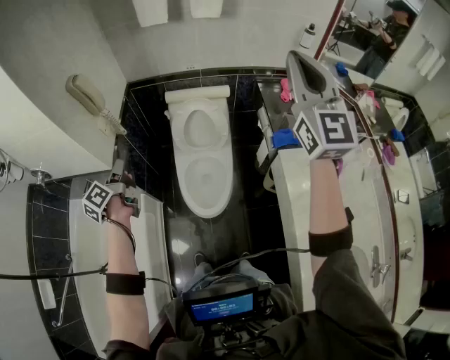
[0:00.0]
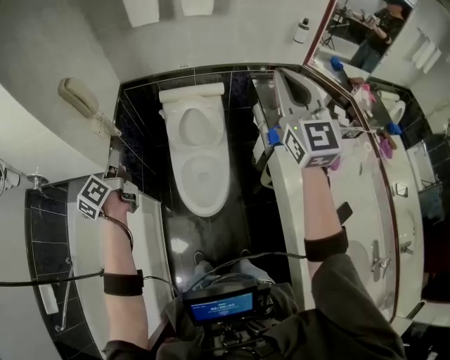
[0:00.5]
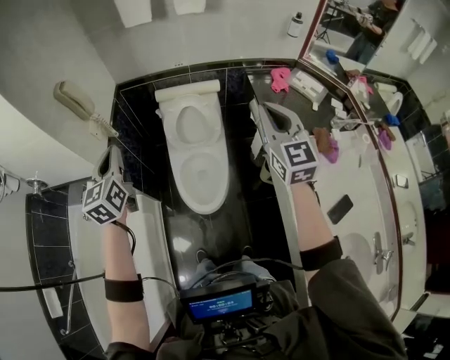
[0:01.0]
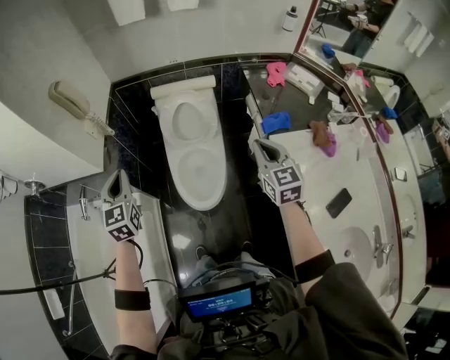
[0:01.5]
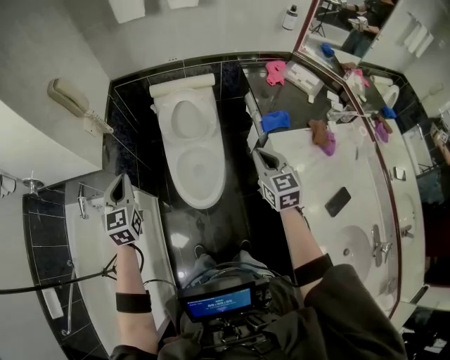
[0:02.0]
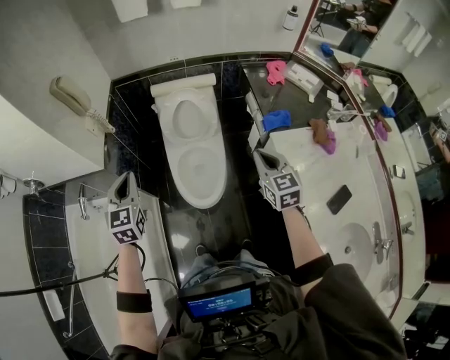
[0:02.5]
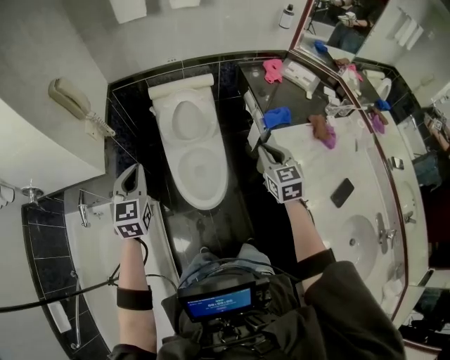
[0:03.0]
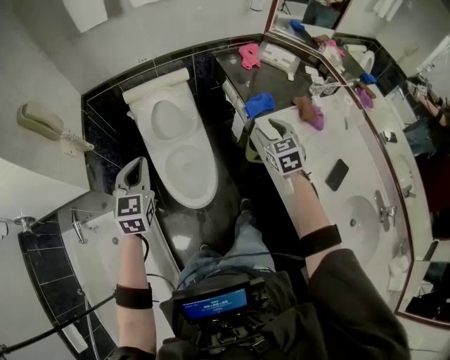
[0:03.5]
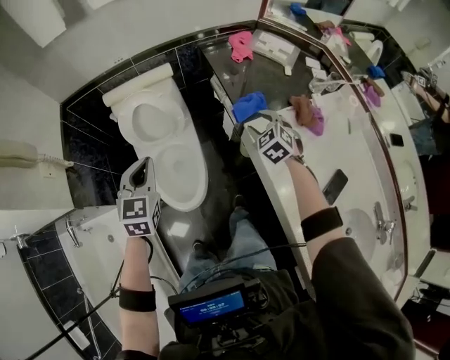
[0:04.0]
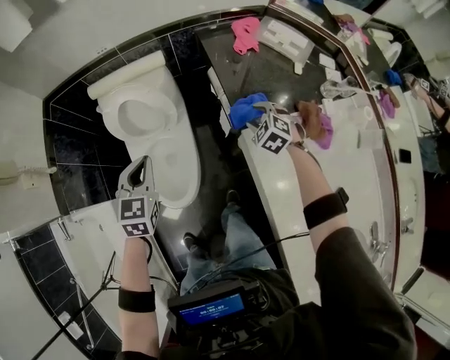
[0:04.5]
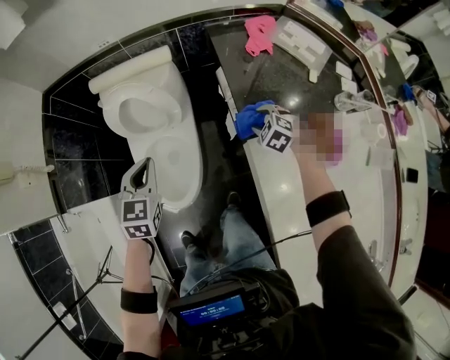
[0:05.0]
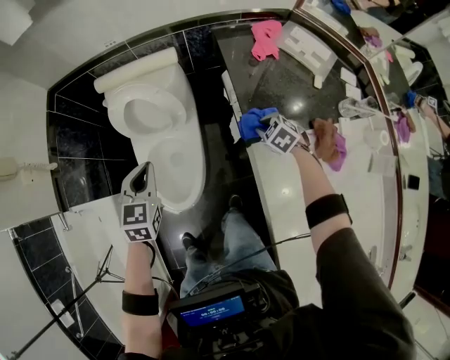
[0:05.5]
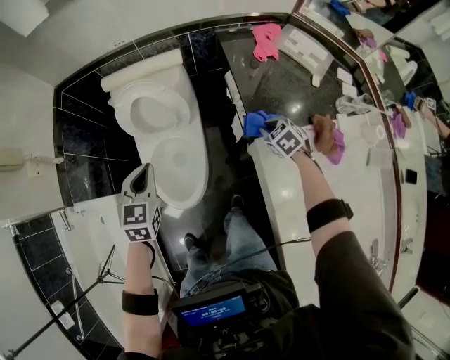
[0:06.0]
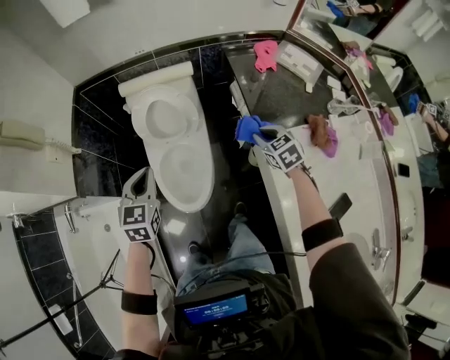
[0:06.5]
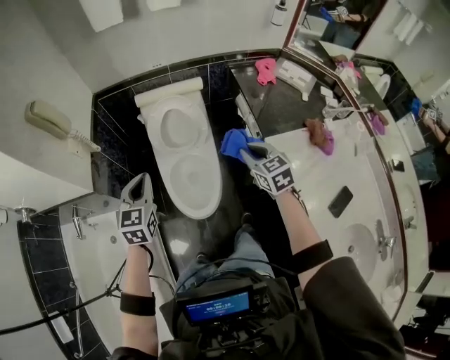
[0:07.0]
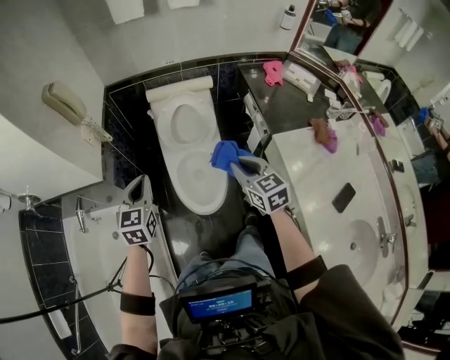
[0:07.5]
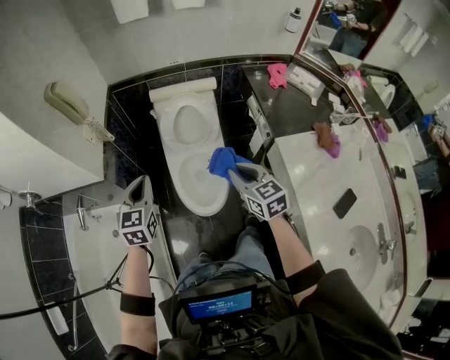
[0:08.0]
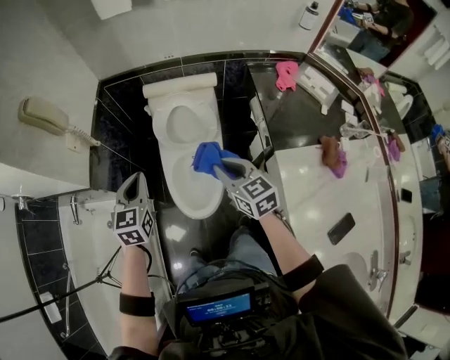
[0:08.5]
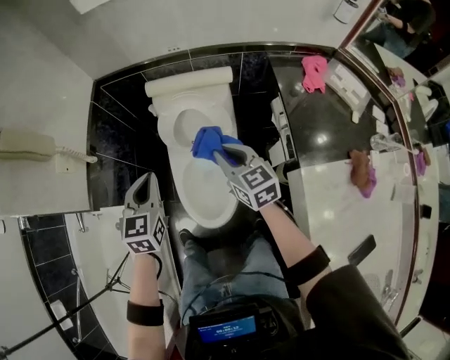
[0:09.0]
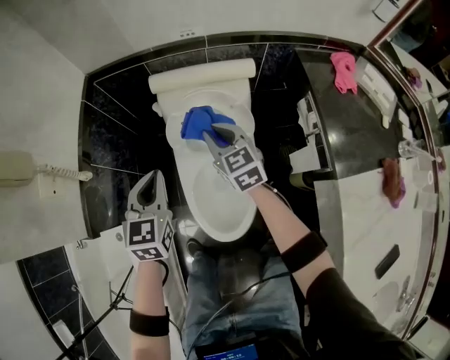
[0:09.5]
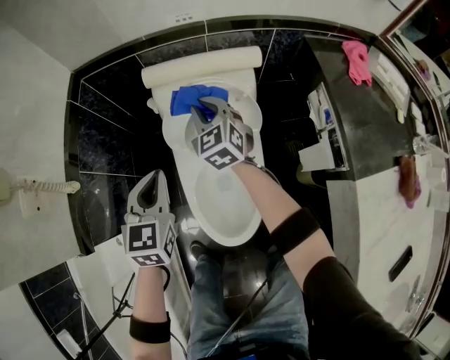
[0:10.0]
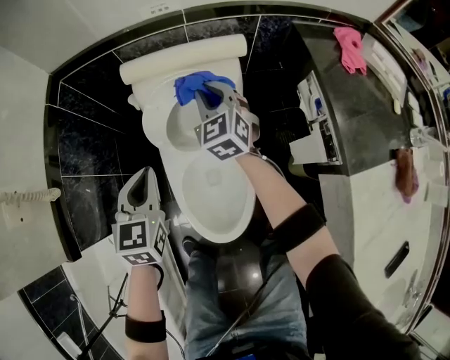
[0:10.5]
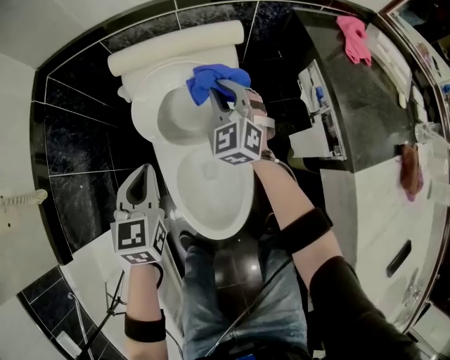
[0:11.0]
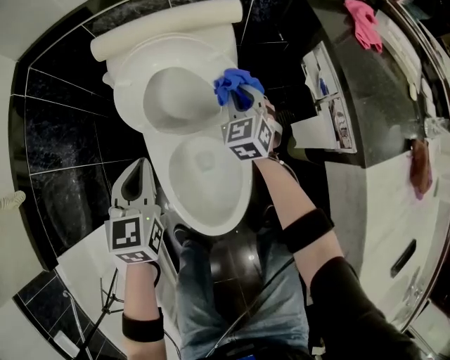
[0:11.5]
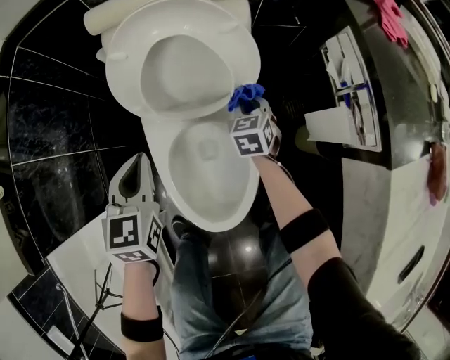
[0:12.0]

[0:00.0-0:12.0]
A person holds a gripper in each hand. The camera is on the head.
0:00.0 to 0:02.0: The left gripper moves backward and to the right, about 10 cm, reaches some 10 cm upward, then returns, and rotates around the line of its fingers by approximately 70 degrees, clockwise from behind; the right gripper goes approximately 35 cm downward, and angles its fingers downward, by about 40 degrees.
0:02.0 to 0:04.0: The left gripper is displaced to the right and forward by roughly 25 cm, and turns by some 30 degrees; the right gripper shifts about 25 cm to the right, forward and downward, changes its angle by about 30 degrees, and opens up.
0:04.0 to 0:06.0: The right gripper travels downward and forward by some 15 cm, changes its angle by approximately 20 degrees, and closes its fingers. Meanwhile the left gripper heads downward and forward, covering about 10 cm.
0:06.0 to 0:08.0: The left gripper shifts some 30 cm to the left, backward and upward, while the right gripper is displaced to the left, upward and backward by approximately 50 cm, and points its fingers approximately 40 degrees further upward.
0:08.0 to 0:10.0: The left gripper travels forward and downward by some 35 cm, while the right gripper goes roughly 50 cm forward and downward, and turns by approximately 20 degrees.
0:10.0 to 0:12.0: The left gripper is displaced downward by roughly 15 cm. Meanwhile the right gripper is displaced downward and to the right by roughly 35 cm, and rotates about 30 degrees.

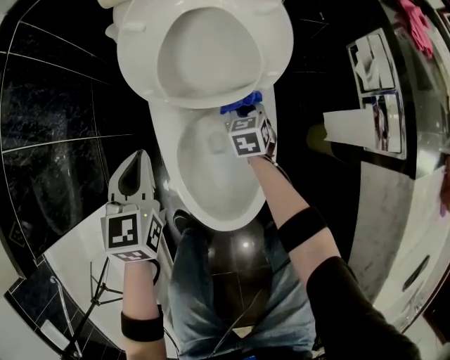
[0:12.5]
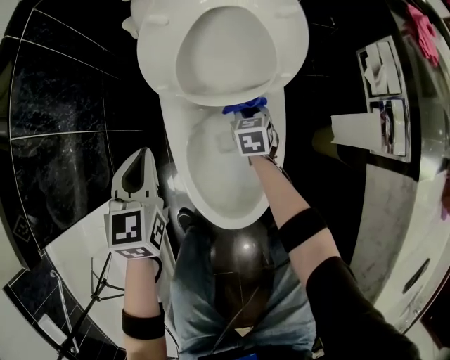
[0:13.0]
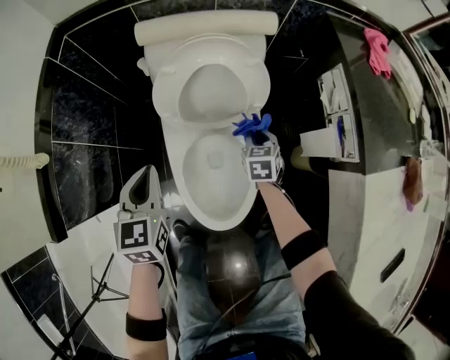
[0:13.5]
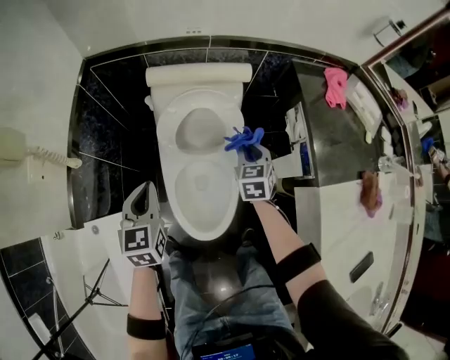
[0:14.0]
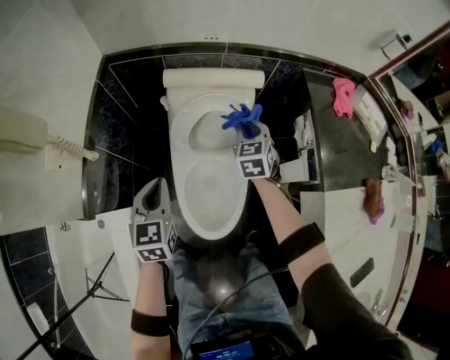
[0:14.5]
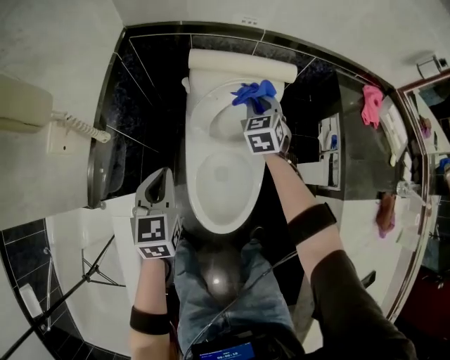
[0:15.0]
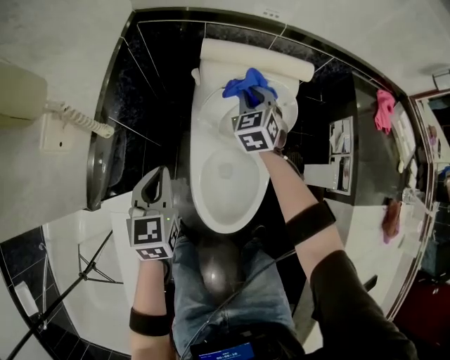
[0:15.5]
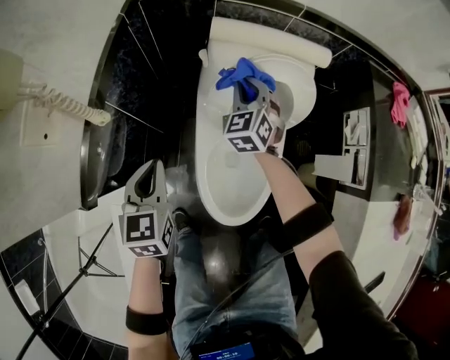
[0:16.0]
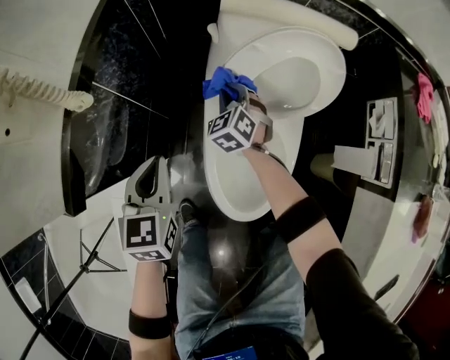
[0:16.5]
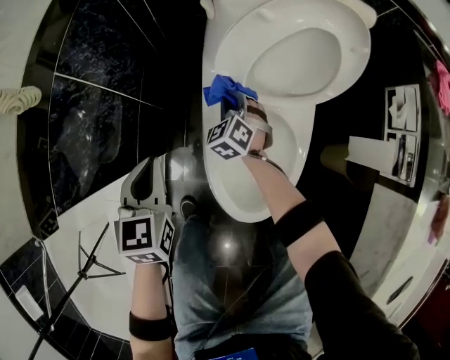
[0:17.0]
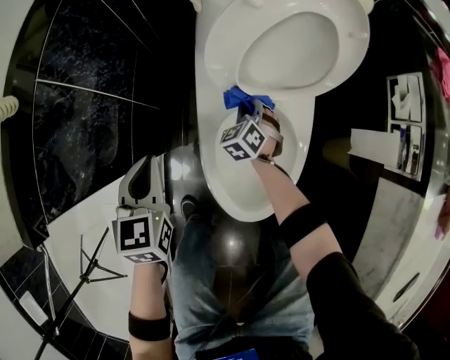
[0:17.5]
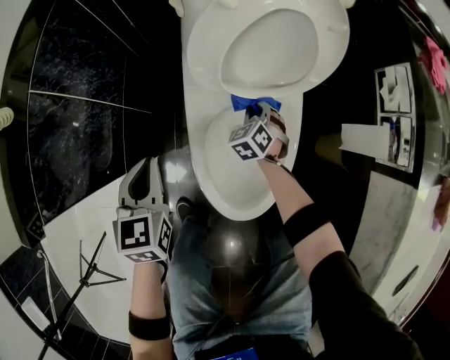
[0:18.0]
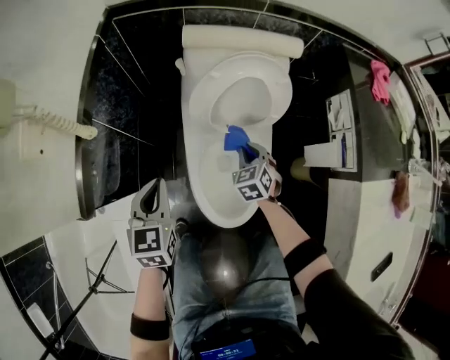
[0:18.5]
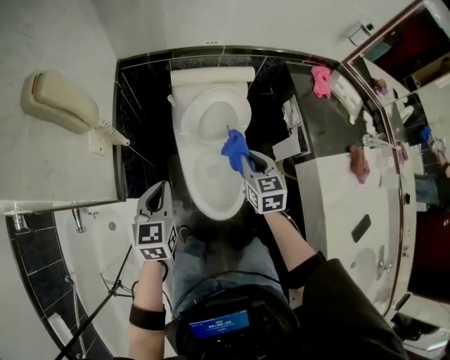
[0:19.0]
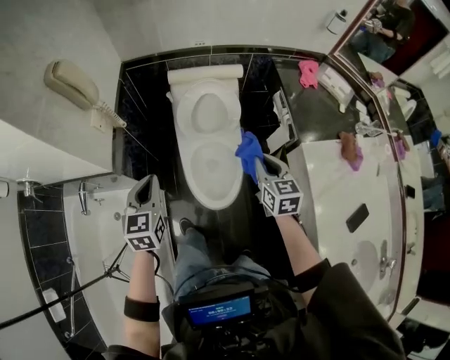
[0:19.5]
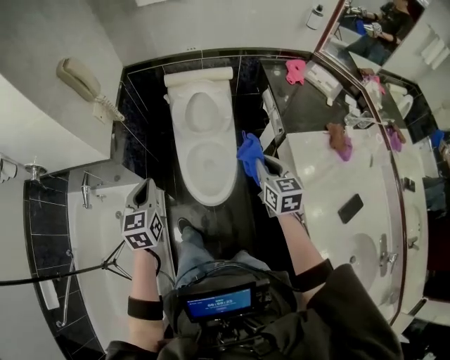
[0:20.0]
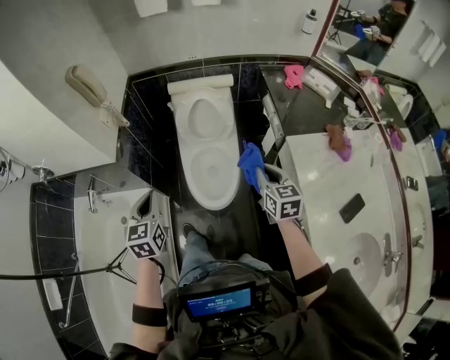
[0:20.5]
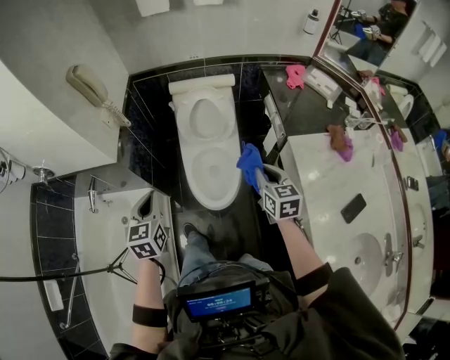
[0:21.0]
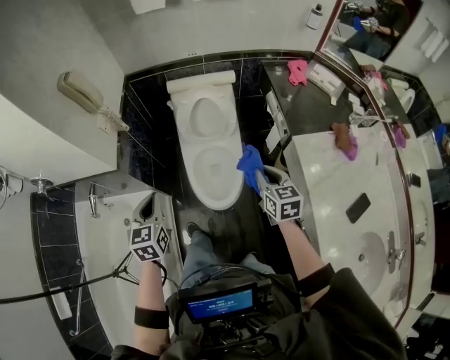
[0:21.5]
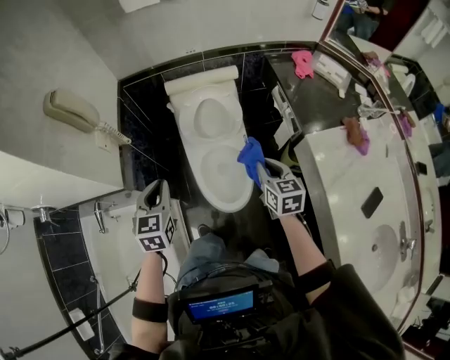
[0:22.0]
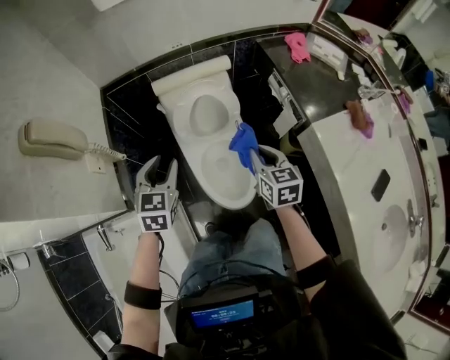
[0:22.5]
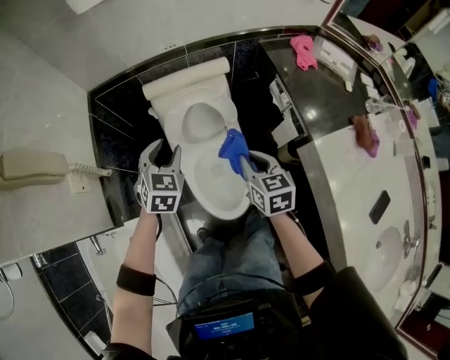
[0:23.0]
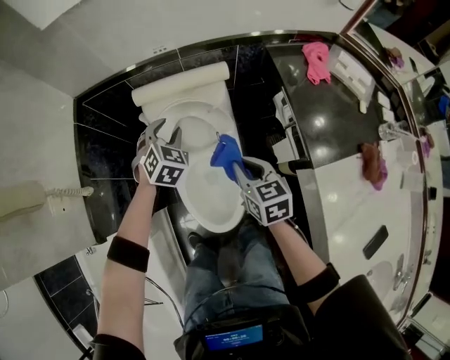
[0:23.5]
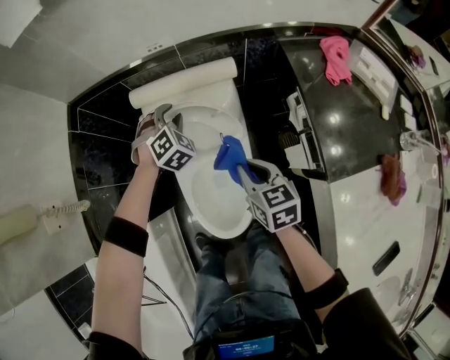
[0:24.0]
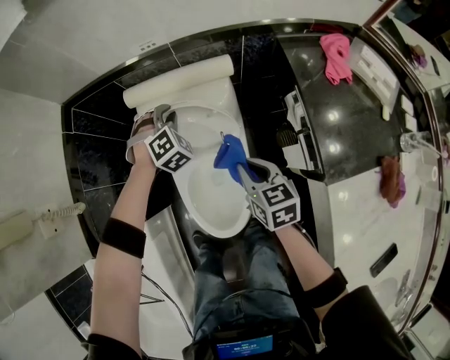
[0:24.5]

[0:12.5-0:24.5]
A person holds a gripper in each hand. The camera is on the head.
0:12.5 to 0:14.5: The left gripper shifts some 25 cm upward. The right gripper shifts approximately 40 cm upward.
0:14.5 to 0:16.5: The right gripper goes approximately 35 cm downward and to the left, and changes its angle by some 30 degrees. The left gripper travels downward and to the left by about 20 cm.
0:16.5 to 0:18.5: The left gripper travels downward and back again, about 10 cm each way. The right gripper shifts approximately 20 cm to the right and backward, and travels downward and back again, some 15 cm each way.
0:18.5 to 0:20.5: The right gripper shifts roughly 50 cm upward, backward and to the right, and turns by about 40 degrees. The left gripper heads backward and upward, covering about 40 cm.
0:20.5 to 0:22.5: The left gripper heads forward, covering some 25 cm, swivels roughly 30 degrees, and opens its fingers. Meanwhile the right gripper shifts some 20 cm forward and to the left.
0:22.5 to 0:24.5: The left gripper is displaced forward, downward and to the right by about 40 cm, and twists roughly 50 degrees clockwise, seen from behind. Meanwhile the right gripper travels forward, downward and to the right by about 25 cm.

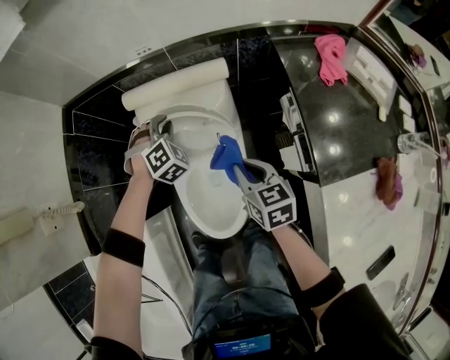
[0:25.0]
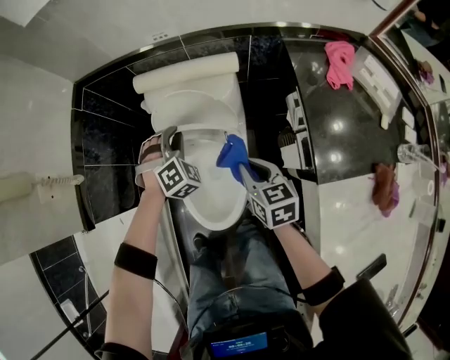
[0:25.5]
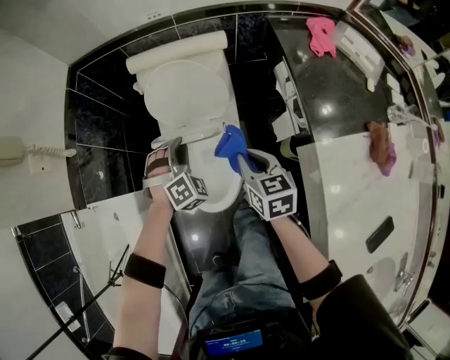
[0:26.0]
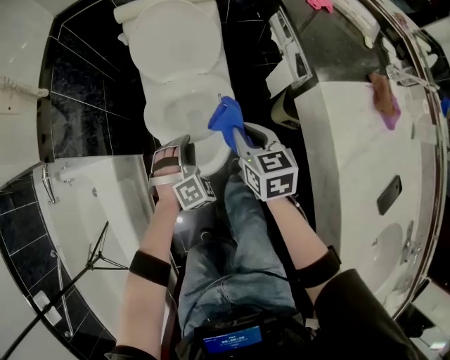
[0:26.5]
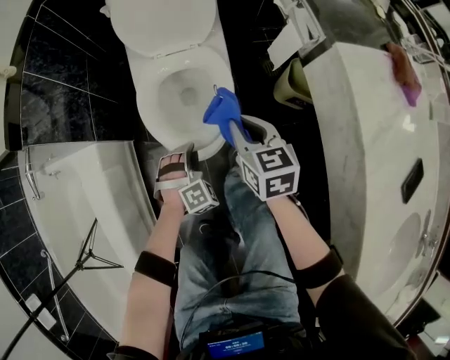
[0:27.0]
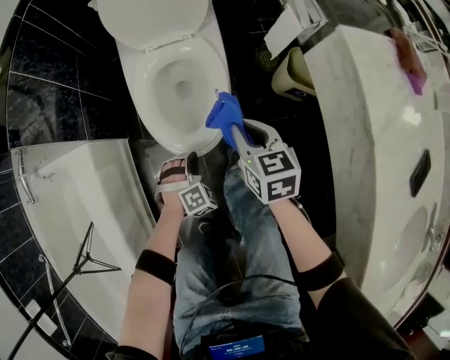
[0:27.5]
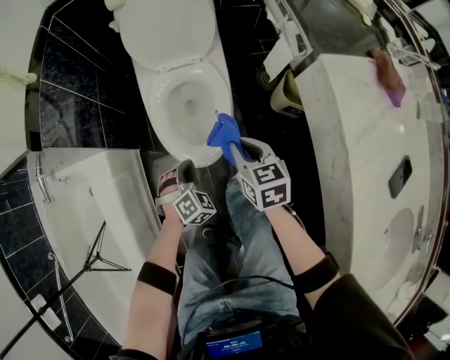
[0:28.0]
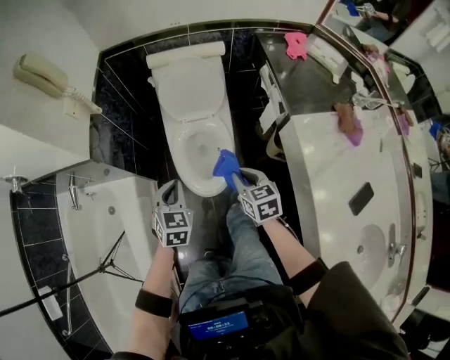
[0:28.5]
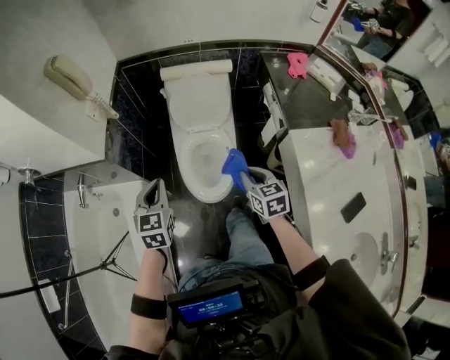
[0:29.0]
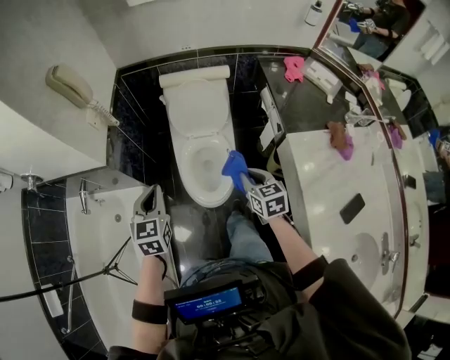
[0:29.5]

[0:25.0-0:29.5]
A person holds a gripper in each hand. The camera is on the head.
0:25.0 to 0:27.0: The left gripper is displaced backward and downward by roughly 60 cm; the right gripper shifts roughly 30 cm backward and downward.
0:27.0 to 0:29.5: The right gripper shifts roughly 25 cm upward; the left gripper heads upward, covering about 50 cm, rotates around the line of its fingers by about 70 degrees, counterclockwise from behind, and closes up.
